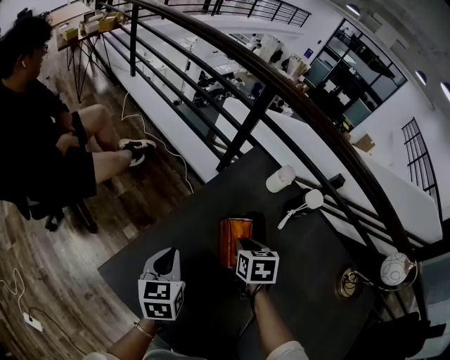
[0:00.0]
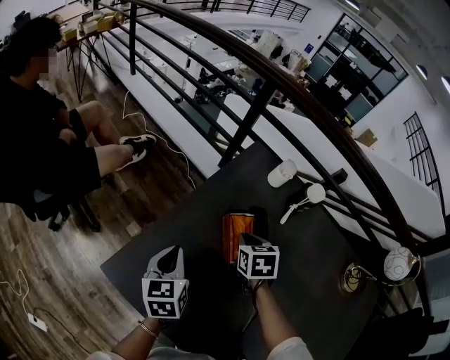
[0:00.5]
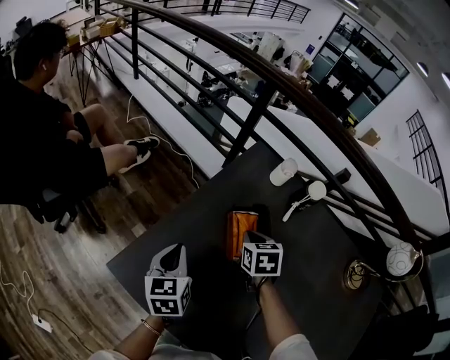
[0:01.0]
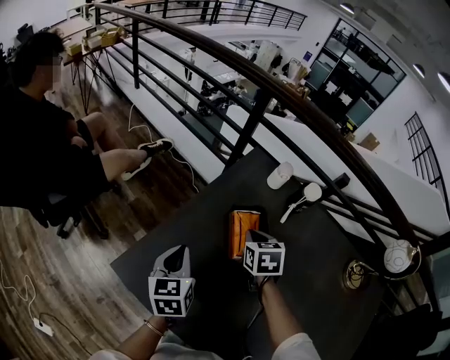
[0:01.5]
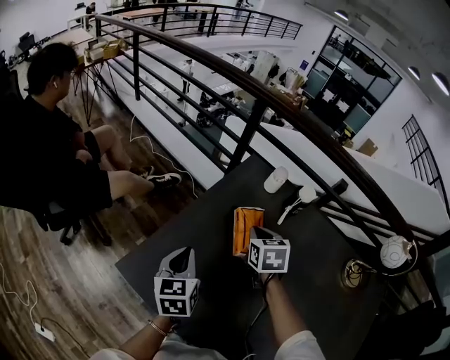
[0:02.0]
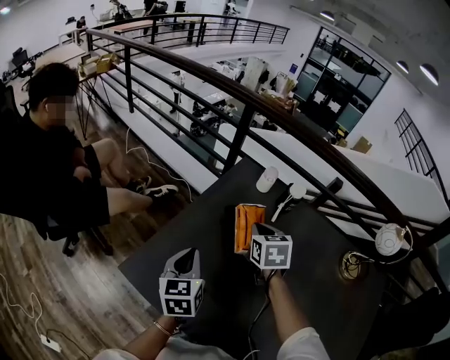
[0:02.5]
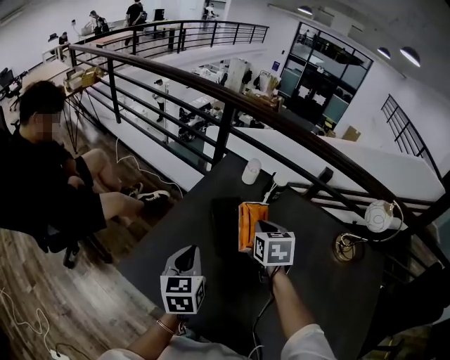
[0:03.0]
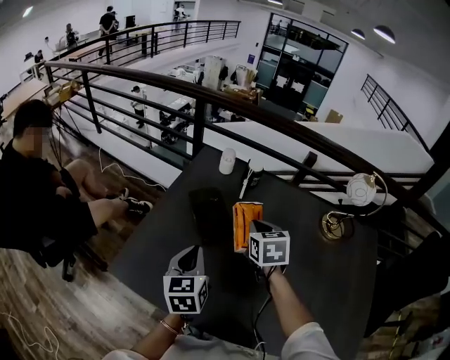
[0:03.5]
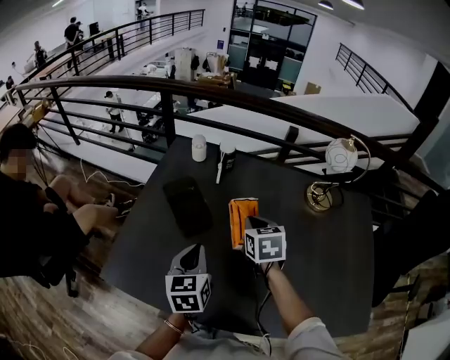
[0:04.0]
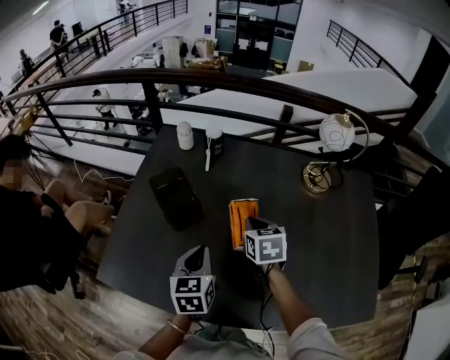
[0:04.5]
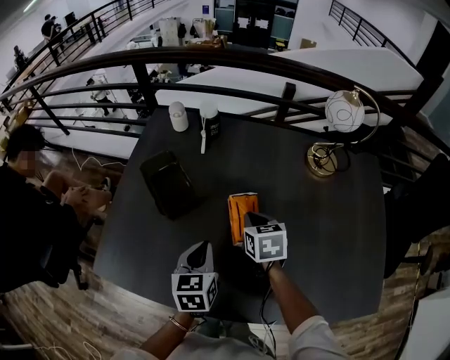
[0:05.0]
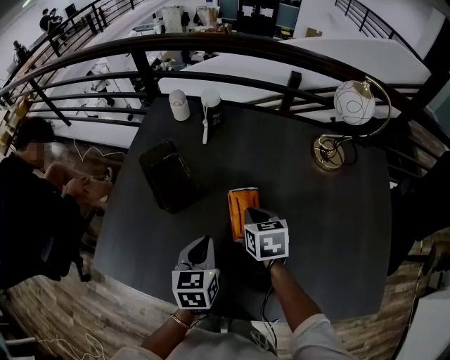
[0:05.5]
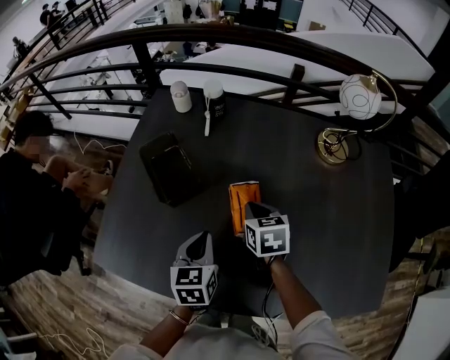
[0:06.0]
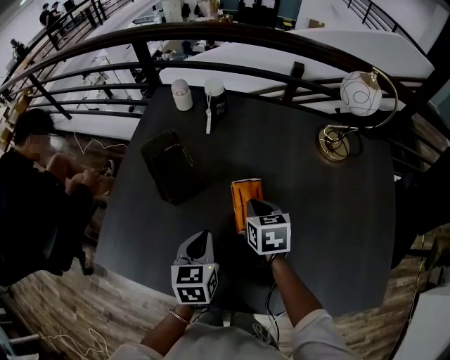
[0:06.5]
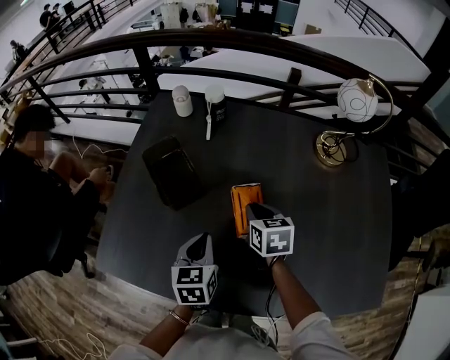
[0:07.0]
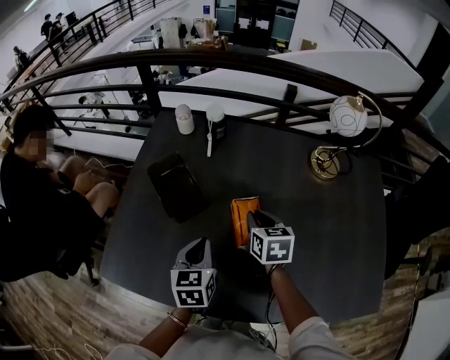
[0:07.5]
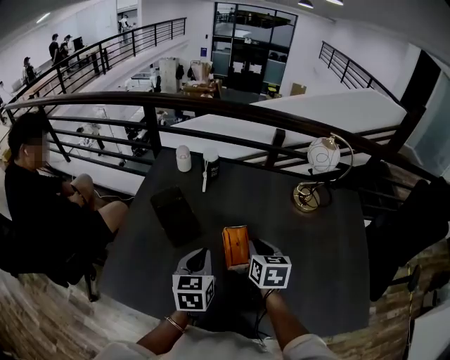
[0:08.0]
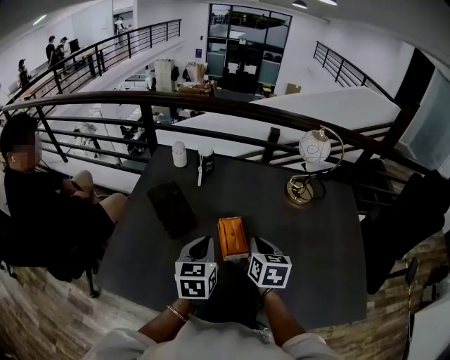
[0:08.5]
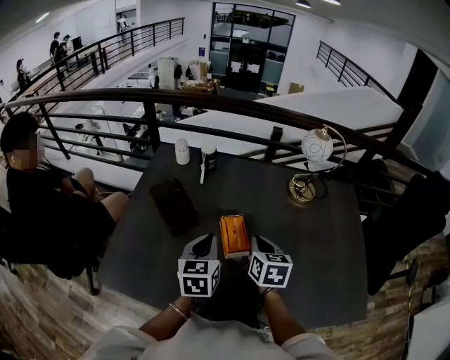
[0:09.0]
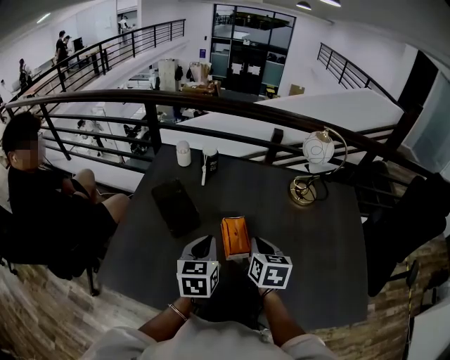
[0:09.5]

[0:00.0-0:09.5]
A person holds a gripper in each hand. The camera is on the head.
0:00.0 to 0:02.0: The grippers both shift upward by some 5 cm.
0:02.0 to 0:04.0: The grippers both shift to the right and backward by roughly 20 cm. The left gripper rotates roughly 20 degrees.
0:04.0 to 0:05.5: The right gripper shifts roughly 10 cm downward. The left gripper moves downward and to the right, approximately 10 cm.
0:05.5 to 0:07.5: The grippers move only a little.
0:07.5 to 0:09.5: The left gripper is displaced upward by approximately 10 cm. The right gripper heads upward and backward, covering about 10 cm.

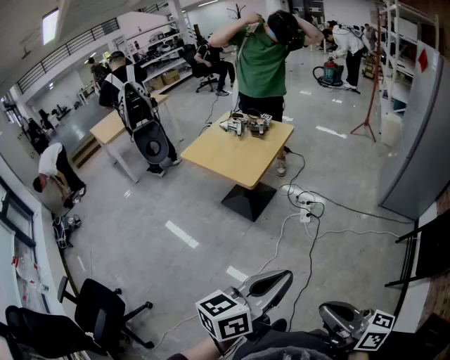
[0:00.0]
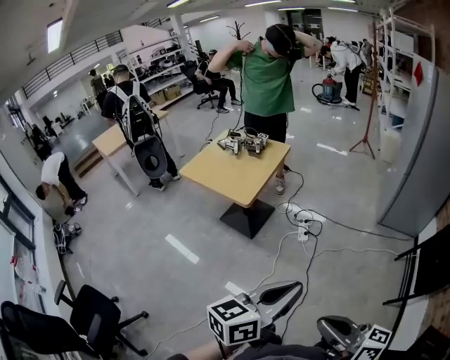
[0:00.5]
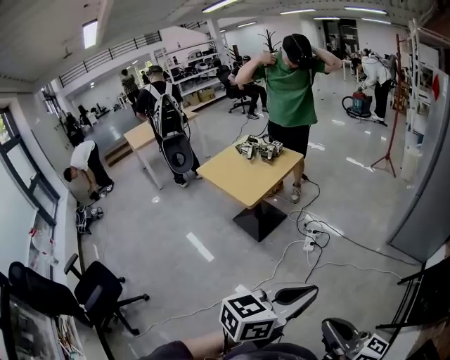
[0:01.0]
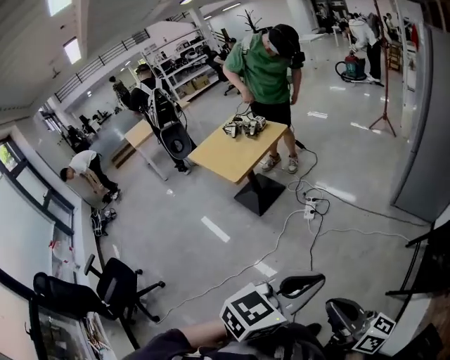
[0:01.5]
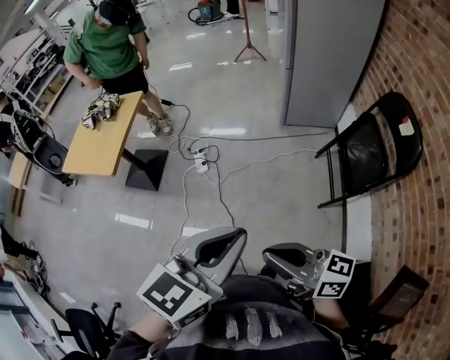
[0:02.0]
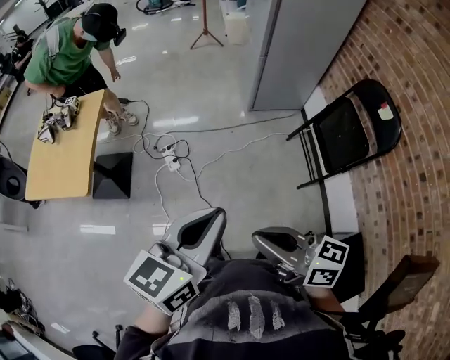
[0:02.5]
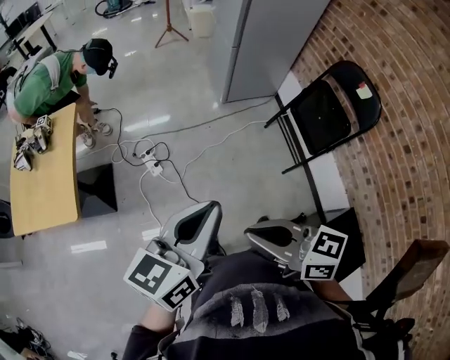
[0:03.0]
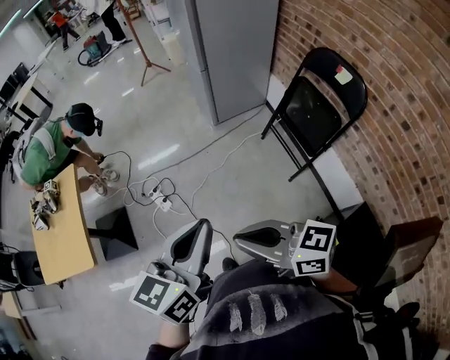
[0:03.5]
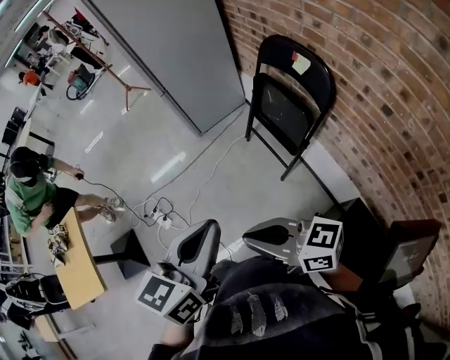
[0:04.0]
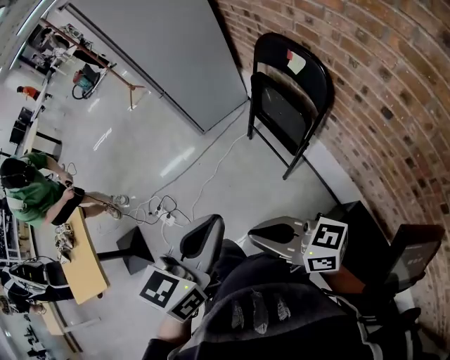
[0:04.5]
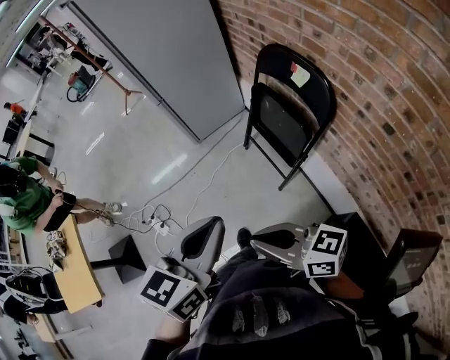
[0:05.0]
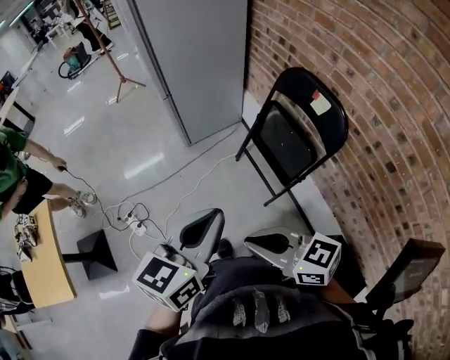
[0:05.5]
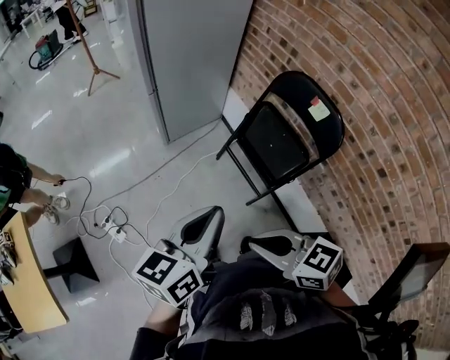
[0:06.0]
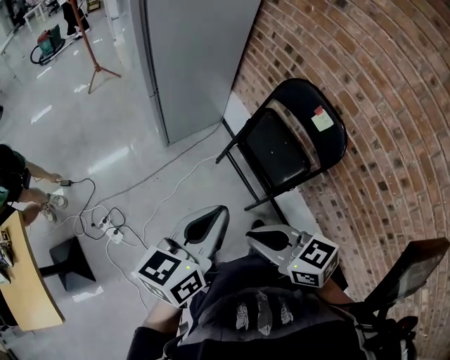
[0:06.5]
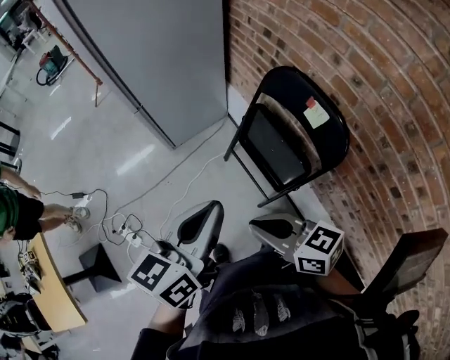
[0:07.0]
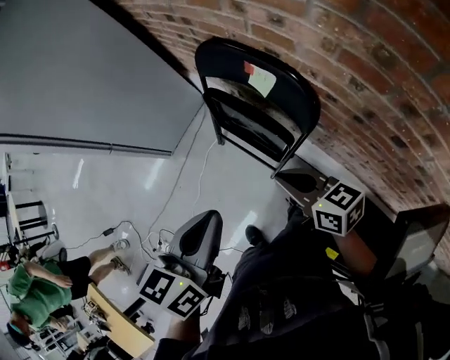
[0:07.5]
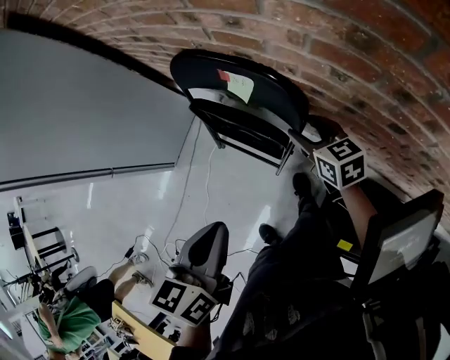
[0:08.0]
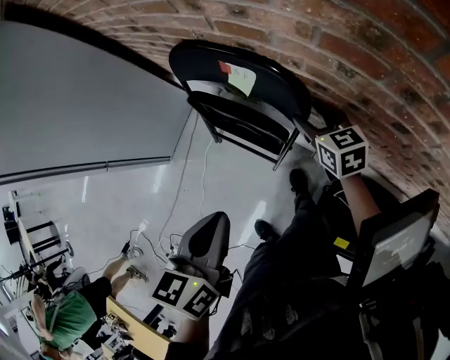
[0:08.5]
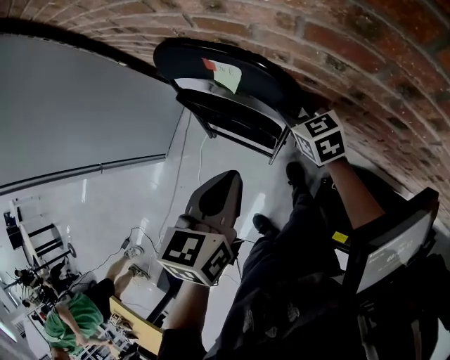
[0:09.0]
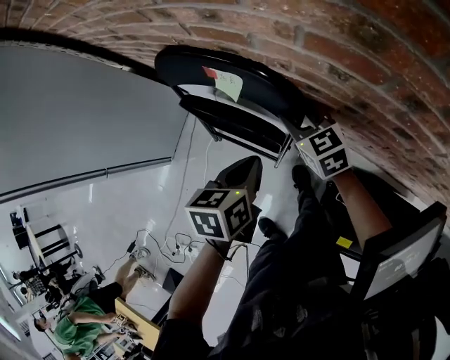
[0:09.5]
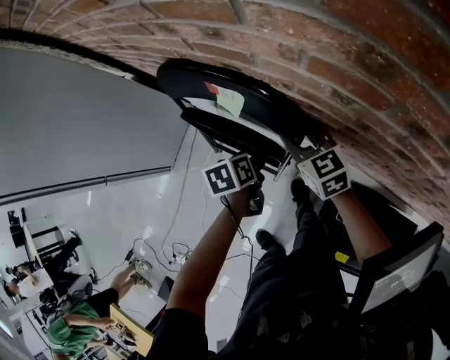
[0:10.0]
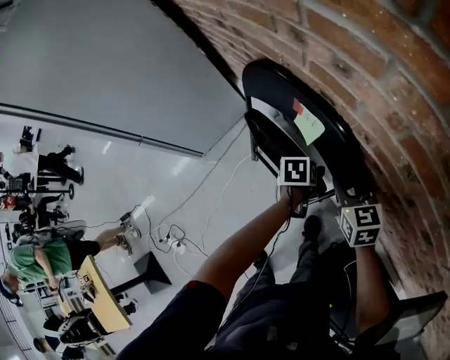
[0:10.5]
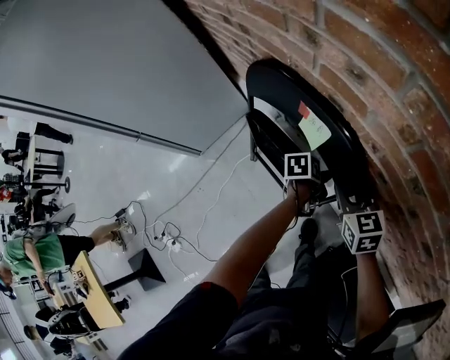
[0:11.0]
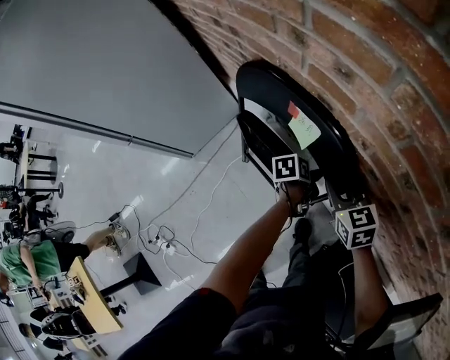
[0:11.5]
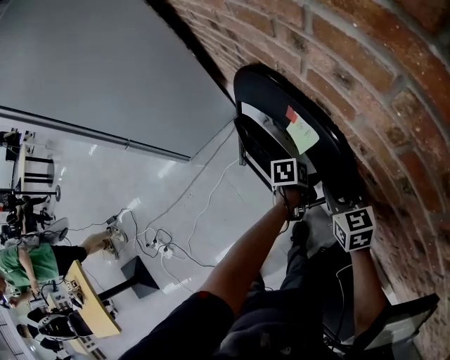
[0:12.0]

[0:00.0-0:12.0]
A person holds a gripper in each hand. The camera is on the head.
0:00.0 to 0:02.0: Both grippers move to the right, roughly 35 cm. The left gripper turns by some 30 degrees.
0:02.0 to 0:04.0: The grippers both shift to the right and forward by about 20 cm. The right gripper turns by some 30 degrees. Meanwhile the left gripper rotates some 20 degrees.
0:04.0 to 0:06.0: Both grippers travel together forward, some 15 cm. The right gripper swivels some 30 degrees. The left gripper swivels approximately 20 degrees.
0:06.0 to 0:08.0: The left gripper changes place by approximately 30 cm, and turns by about 30 degrees. Meanwhile the right gripper changes place by roughly 60 cm, turns by about 50 degrees, and opens.
0:08.0 to 0:10.0: The left gripper shifts some 30 cm downward and forward, turns by approximately 30 degrees, and opens; the right gripper ends up approximately 5 cm from where it was.
0:10.0 to 0:12.0: The left gripper travels downward by about 10 cm.

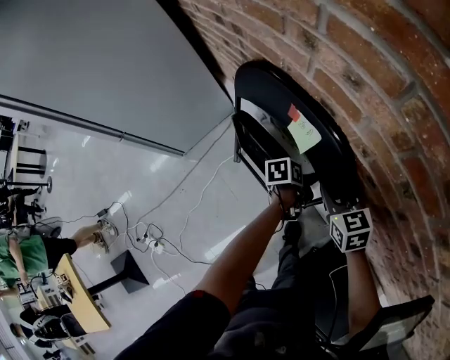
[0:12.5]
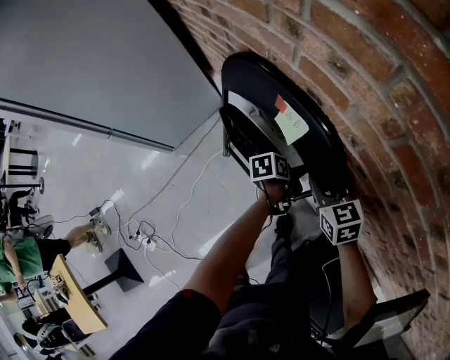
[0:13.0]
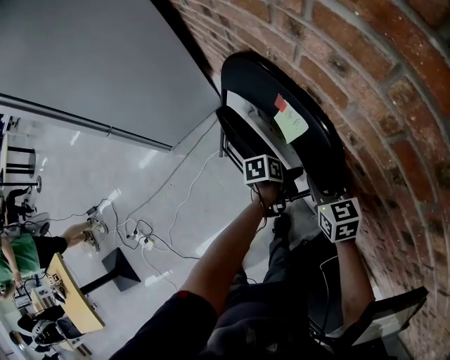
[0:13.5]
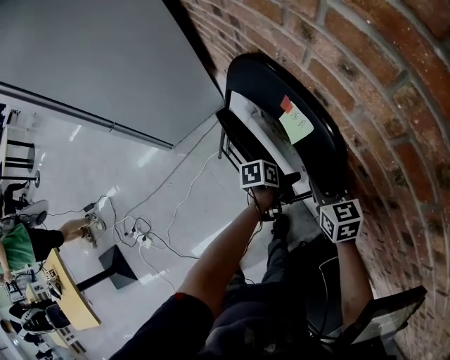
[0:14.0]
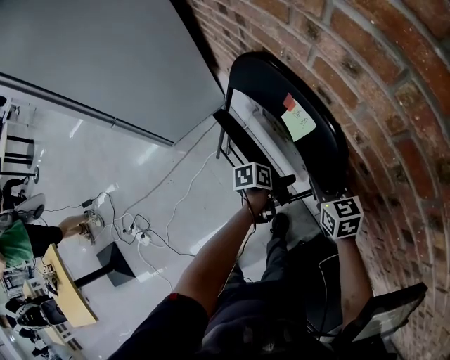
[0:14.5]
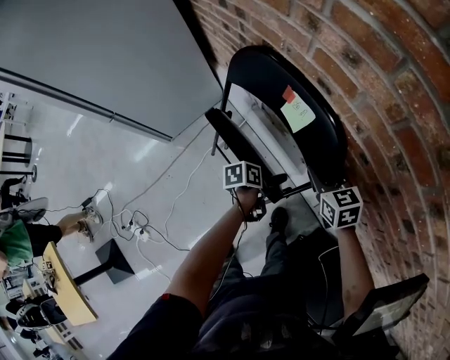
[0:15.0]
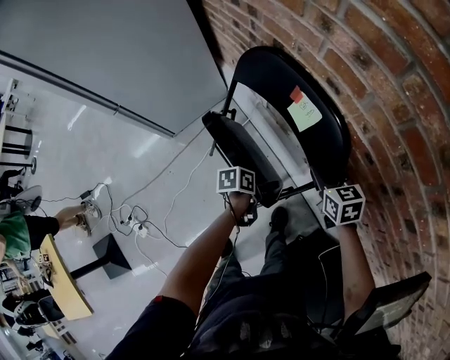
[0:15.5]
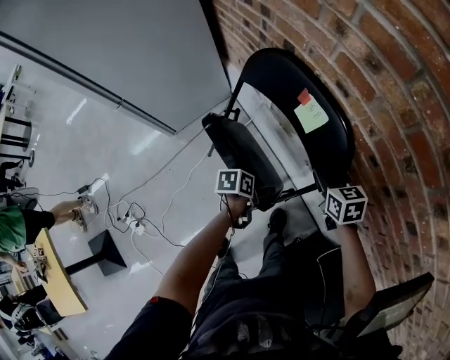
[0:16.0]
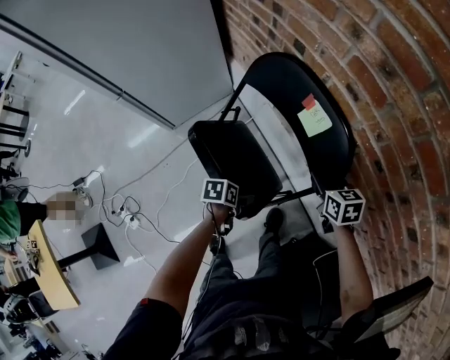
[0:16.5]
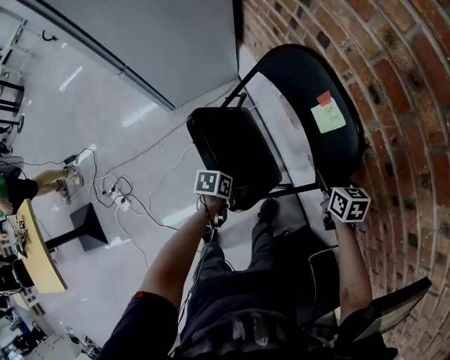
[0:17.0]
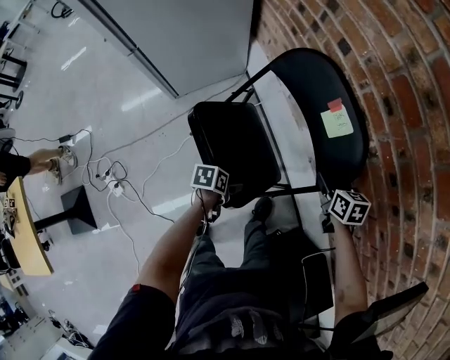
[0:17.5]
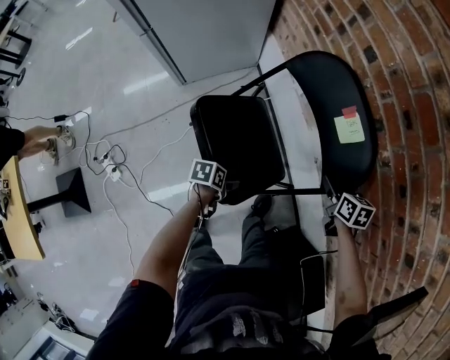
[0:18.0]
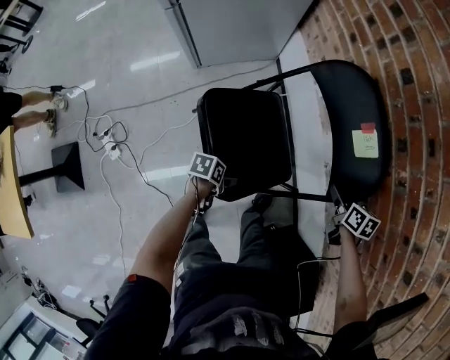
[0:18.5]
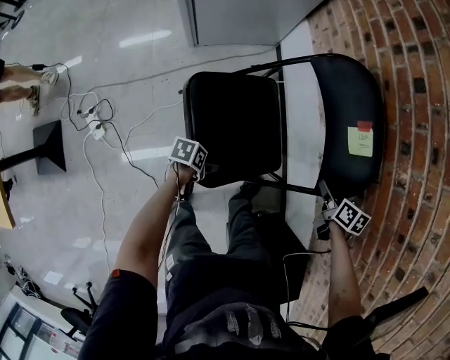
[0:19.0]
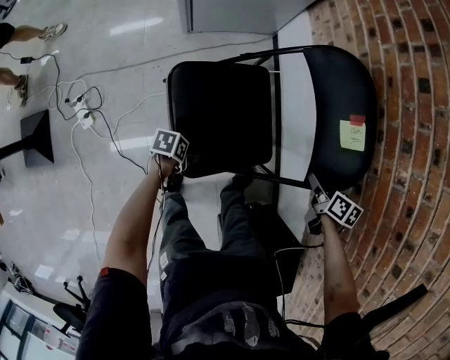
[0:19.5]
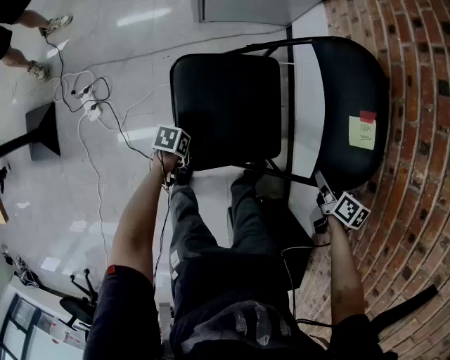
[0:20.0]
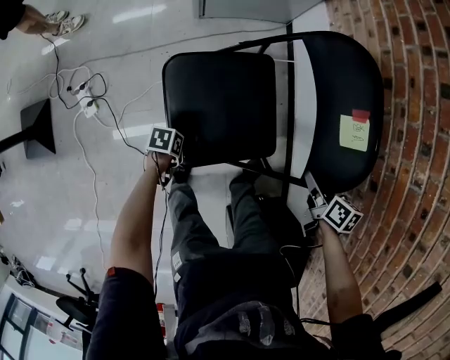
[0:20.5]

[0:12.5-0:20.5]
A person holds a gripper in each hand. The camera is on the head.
0:12.5 to 0:14.5: The left gripper shifts some 5 cm backward.
0:14.5 to 0:16.5: The right gripper moves approximately 5 cm; the left gripper heads backward and to the left, covering roughly 20 cm.
0:16.5 to 0:18.5: The right gripper moves downward, about 5 cm. The left gripper heads backward, to the left and downward, covering roughly 15 cm.
0:18.5 to 0:20.5: The right gripper moves some 15 cm; the left gripper moves approximately 20 cm.
